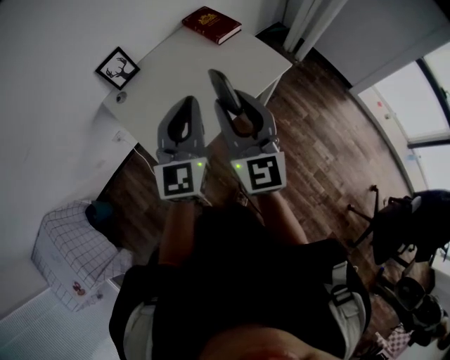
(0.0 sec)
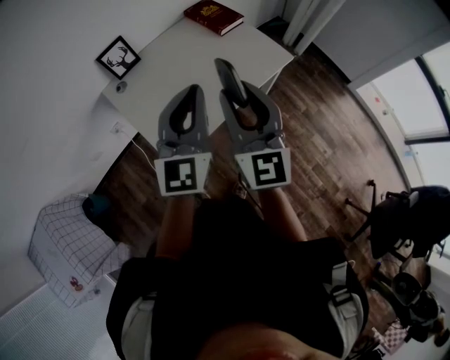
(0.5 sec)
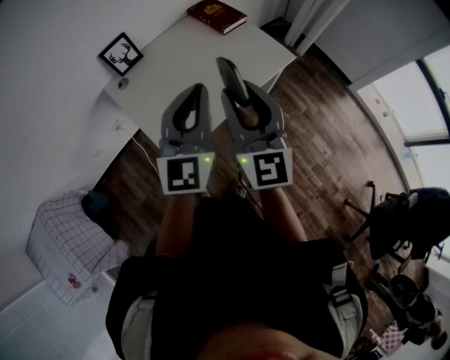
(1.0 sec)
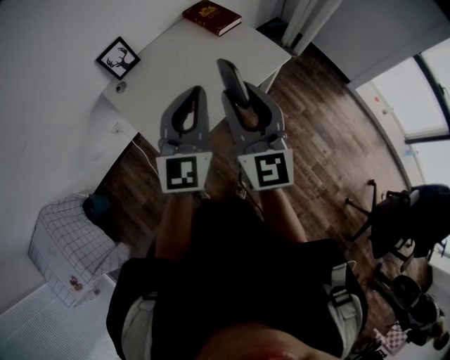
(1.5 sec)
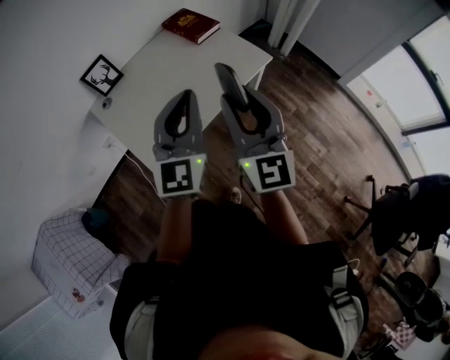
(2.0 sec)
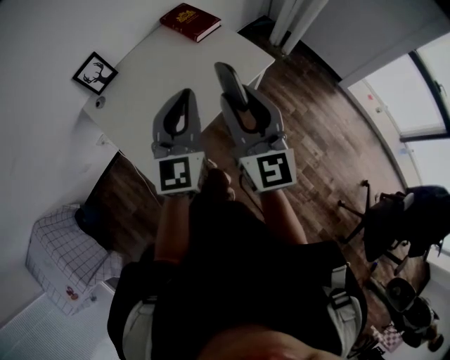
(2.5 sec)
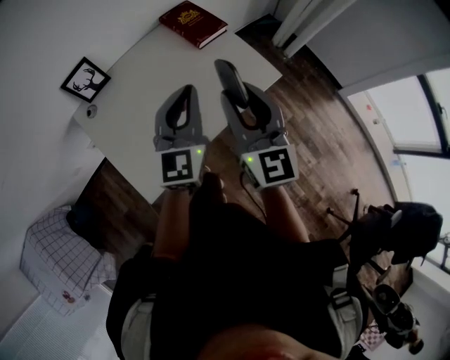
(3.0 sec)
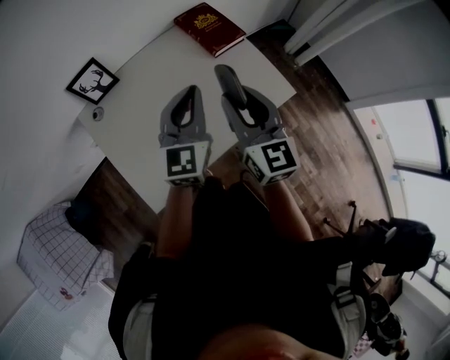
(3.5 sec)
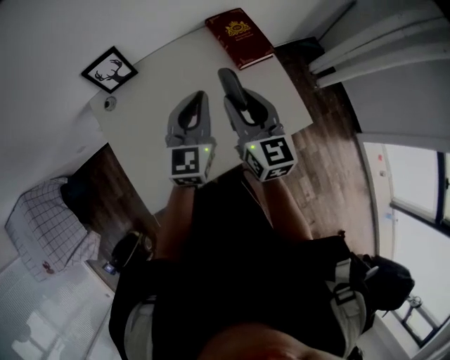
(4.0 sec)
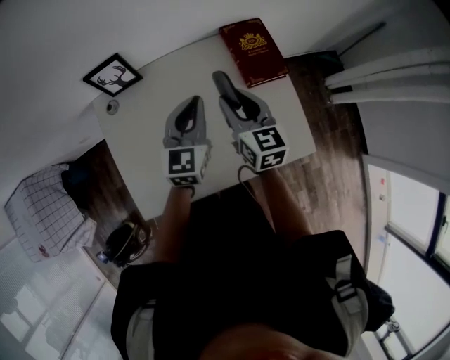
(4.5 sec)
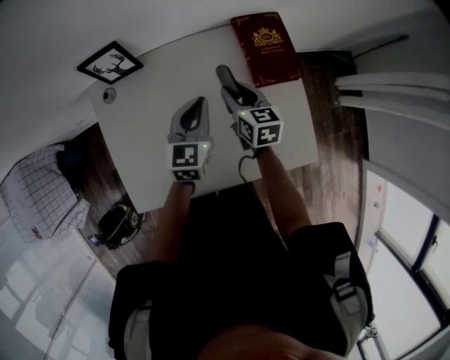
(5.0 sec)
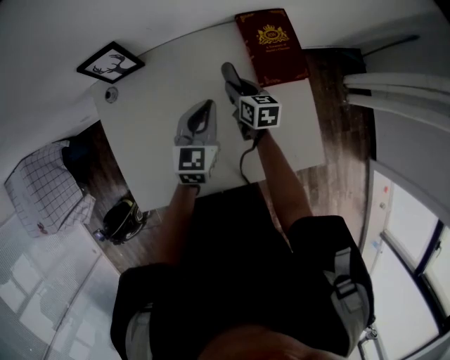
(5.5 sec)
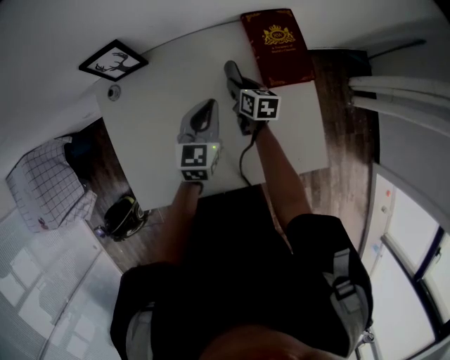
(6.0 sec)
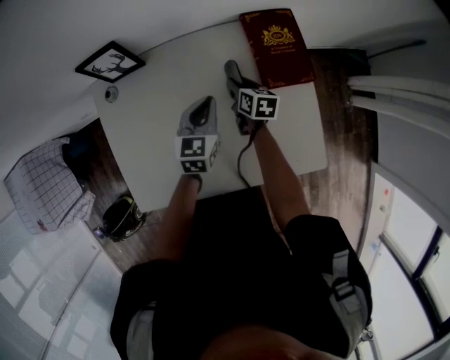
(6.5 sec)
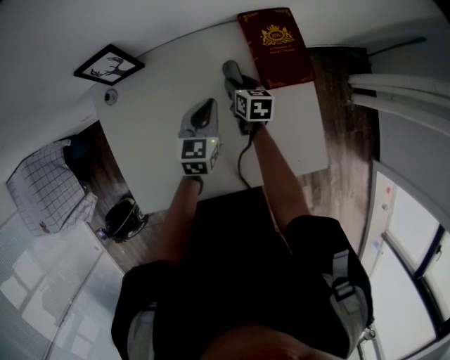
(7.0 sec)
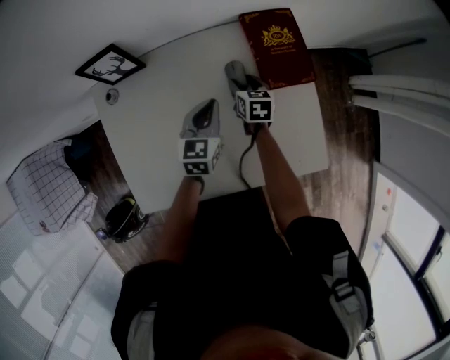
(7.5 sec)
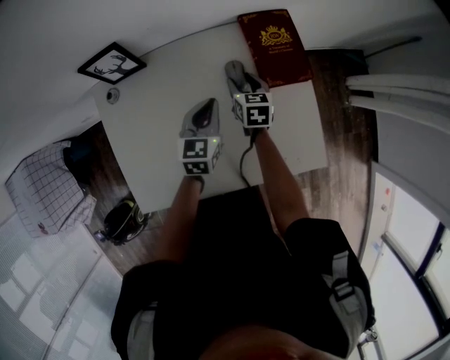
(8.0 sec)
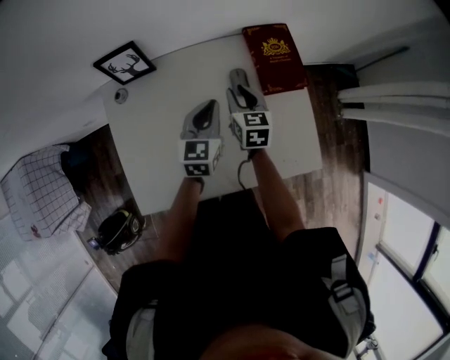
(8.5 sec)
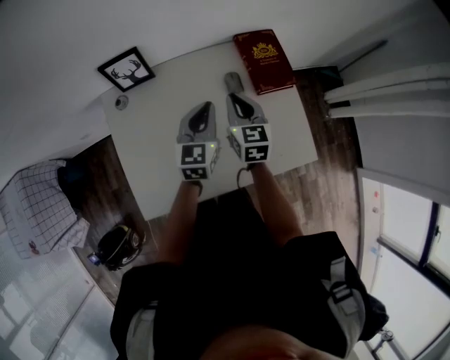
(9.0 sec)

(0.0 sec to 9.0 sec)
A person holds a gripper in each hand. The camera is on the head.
0.0 sec - 2.0 sec: Both grippers move to the right, some 5 cm.
2.0 sec - 4.5 sec: The pair of grippers is taken about 40 cm. The left gripper turns by some 30 degrees; the right gripper swivels approximately 50 degrees.
4.5 sec - 7.0 sec: The left gripper heads downward, covering approximately 15 cm. Meanwhile the right gripper moves downward and forward, approximately 25 cm, and swivels some 30 degrees.
7.0 sec - 9.0 sec: The right gripper goes roughly 25 cm upward and backward, swivels approximately 30 degrees, and closes up, while the left gripper moves upward, approximately 10 cm.

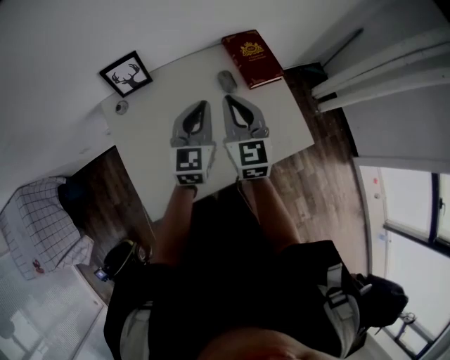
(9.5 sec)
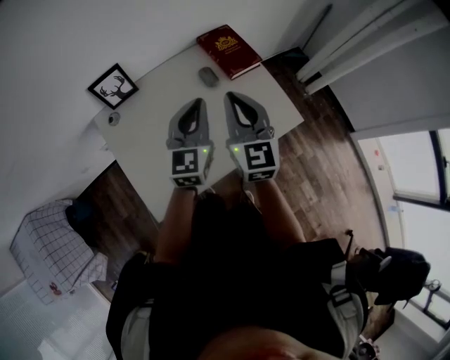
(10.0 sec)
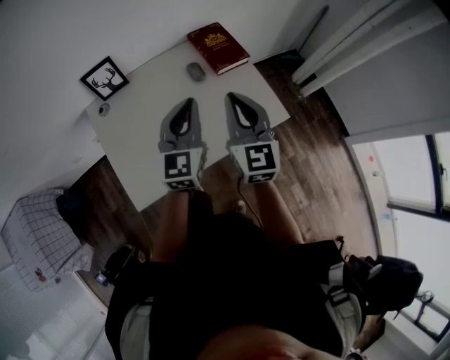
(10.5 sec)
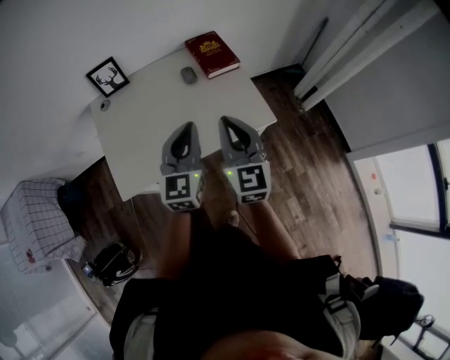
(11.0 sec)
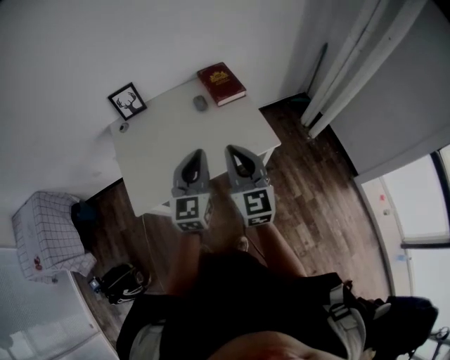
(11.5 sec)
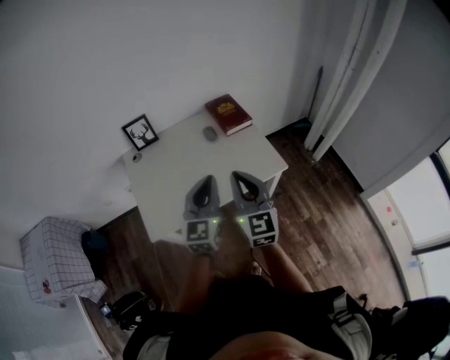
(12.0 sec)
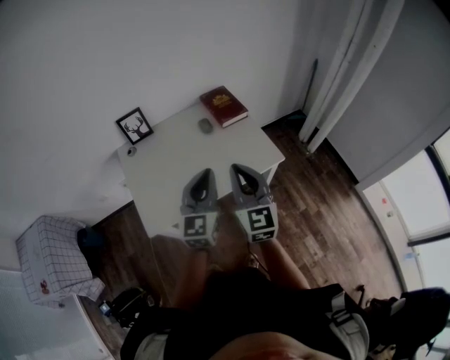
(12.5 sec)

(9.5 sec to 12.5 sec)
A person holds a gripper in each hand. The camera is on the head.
9.5 sec - 11.0 sec: Both grippers move backward and to the right, some 25 cm.
11.0 sec - 12.5 sec: Both grippers move backward, some 10 cm.

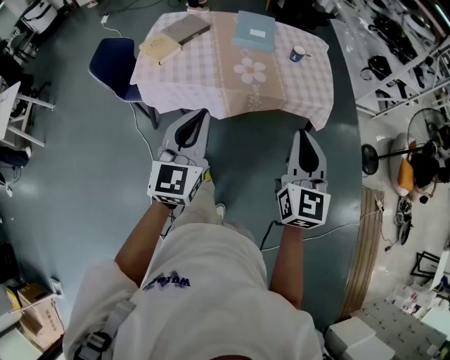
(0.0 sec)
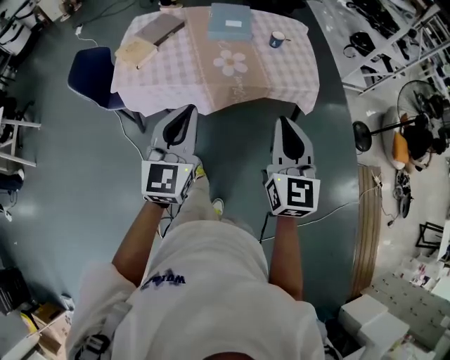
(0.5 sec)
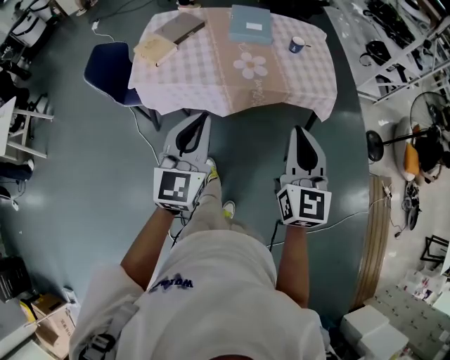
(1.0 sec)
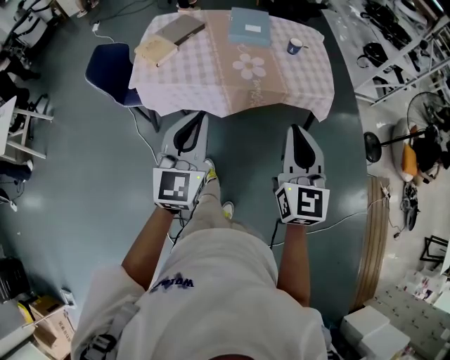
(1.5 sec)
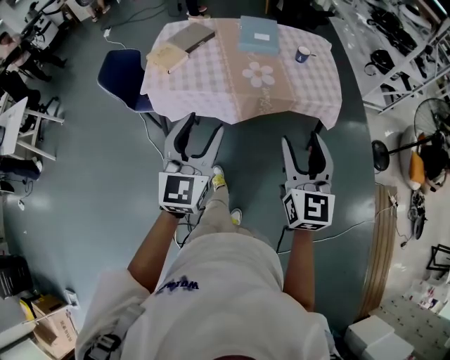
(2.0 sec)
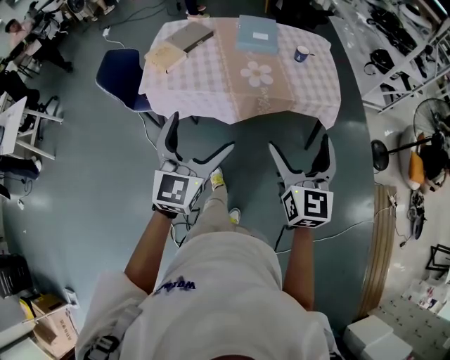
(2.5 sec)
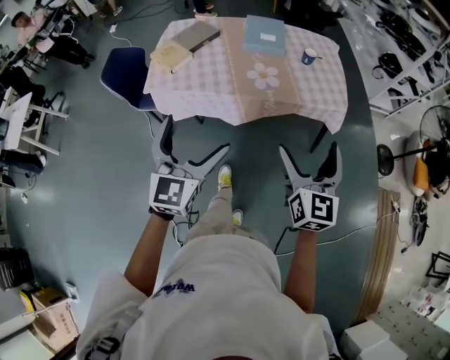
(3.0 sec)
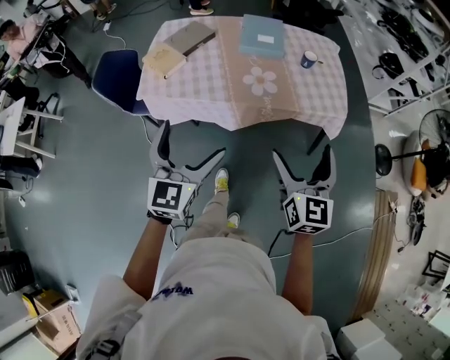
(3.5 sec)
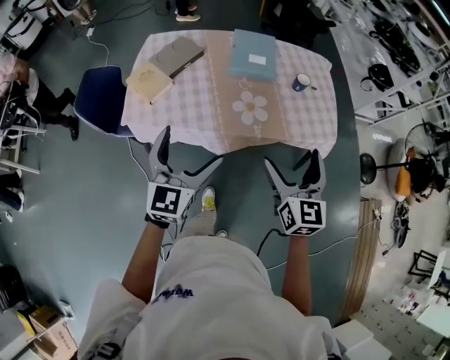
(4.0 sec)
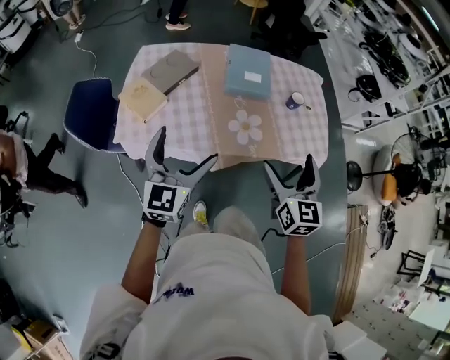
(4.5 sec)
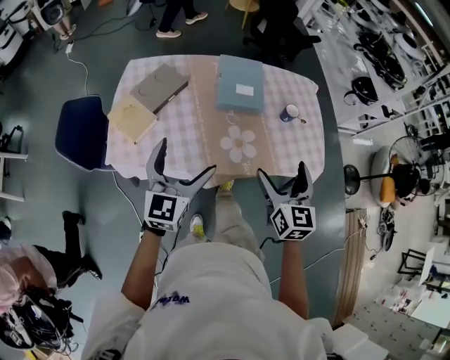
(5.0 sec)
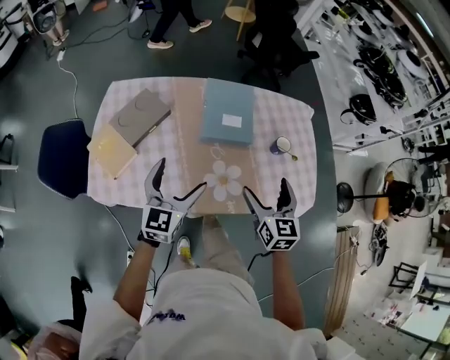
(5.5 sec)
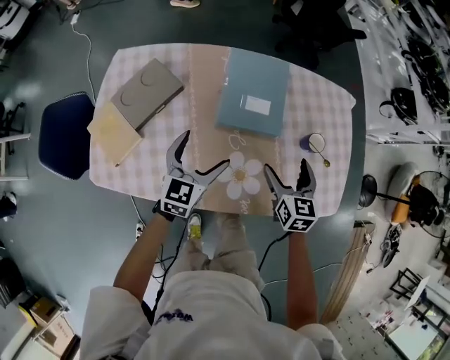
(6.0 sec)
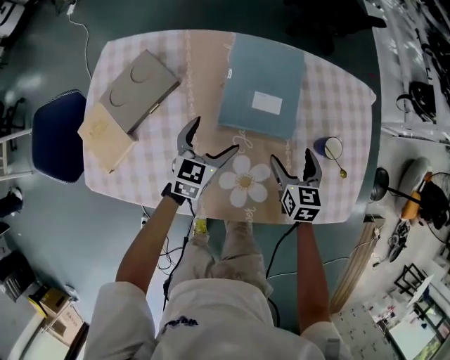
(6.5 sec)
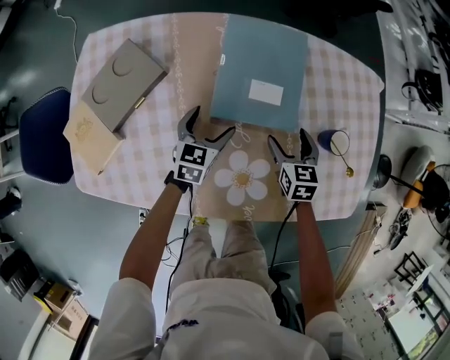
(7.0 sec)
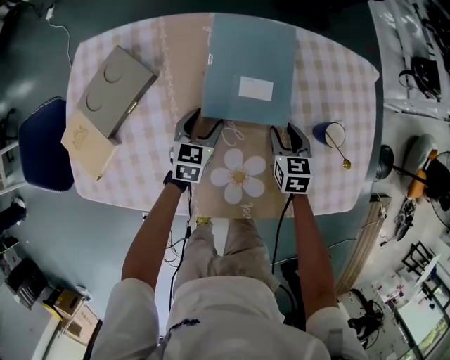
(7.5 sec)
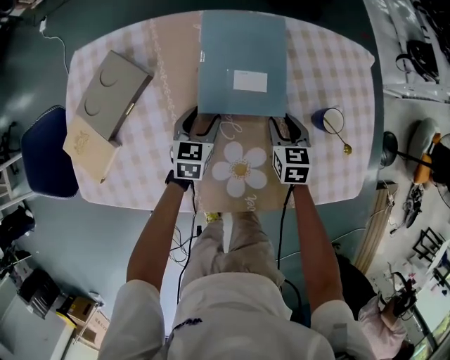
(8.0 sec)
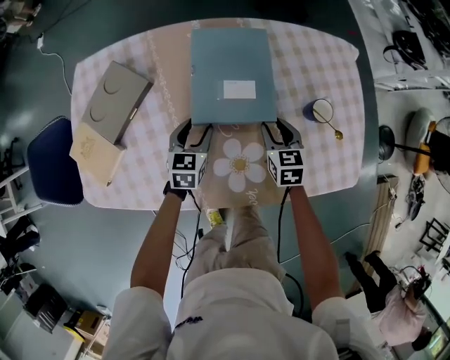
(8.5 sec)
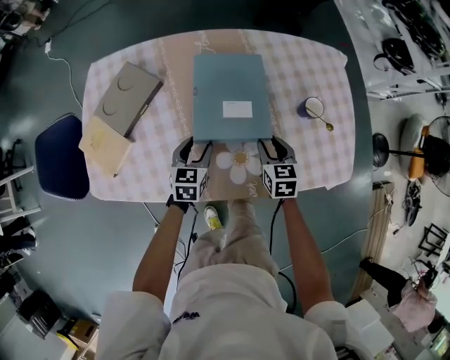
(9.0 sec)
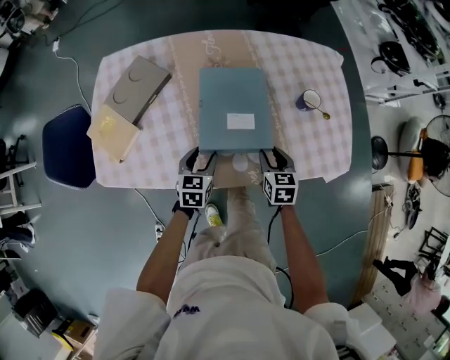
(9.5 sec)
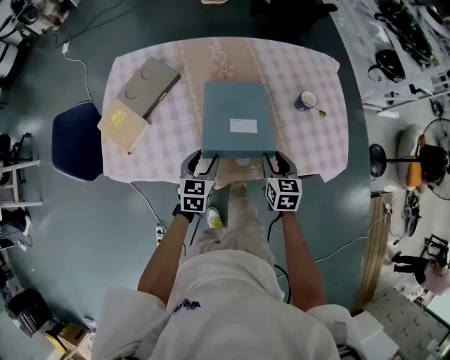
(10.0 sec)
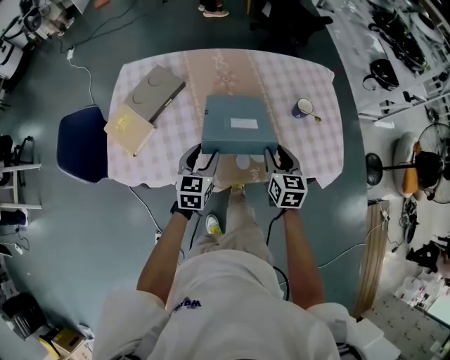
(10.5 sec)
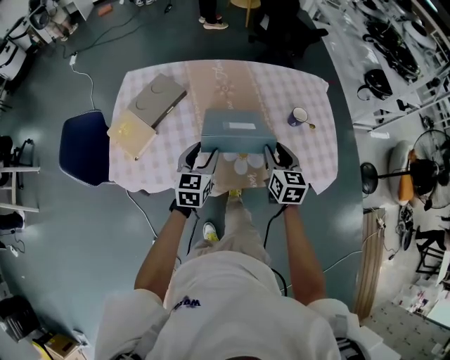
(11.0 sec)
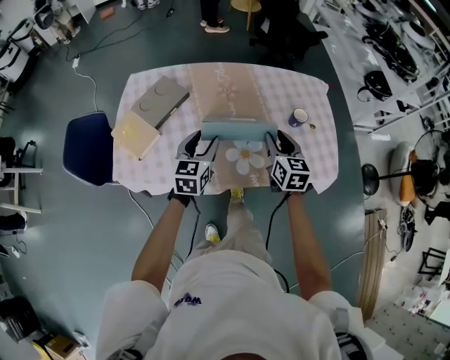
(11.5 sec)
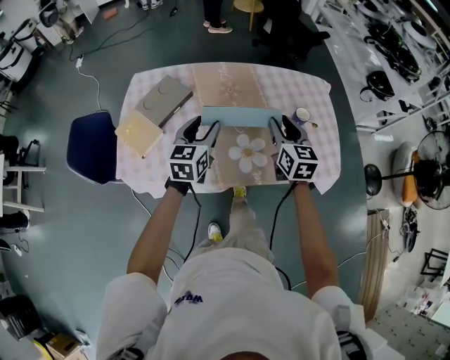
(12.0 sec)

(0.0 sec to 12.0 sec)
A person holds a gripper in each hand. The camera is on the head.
0.0 sec - 2.0 sec: The left gripper opens, while the right gripper opens its fingers.
2.0 sec - 4.0 sec: The two grippers go roughly 20 cm forward. The left gripper opens. Meanwhile the right gripper opens its fingers.
4.0 sec - 6.0 sec: The two grippers go some 40 cm forward and downward. The right gripper rotates roughly 20 degrees.
6.0 sec - 8.0 sec: The two grippers go some 20 cm downward and forward. The left gripper closes. The right gripper closes its fingers.
8.0 sec - 10.0 sec: The two grippers go some 25 cm backward and upward.
10.0 sec - 12.0 sec: Both grippers move upward, some 20 cm.

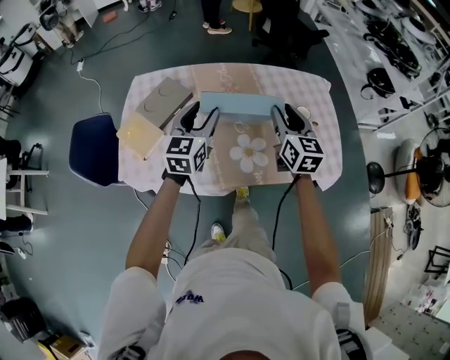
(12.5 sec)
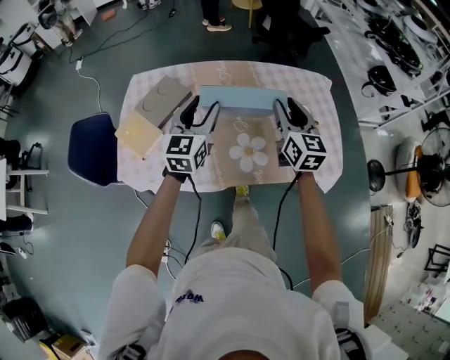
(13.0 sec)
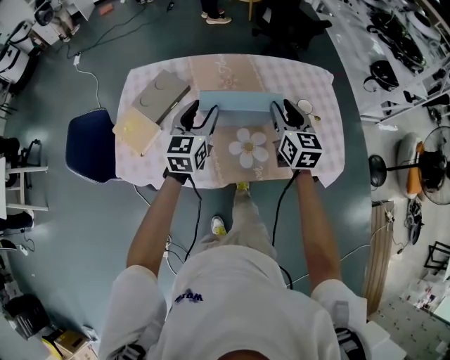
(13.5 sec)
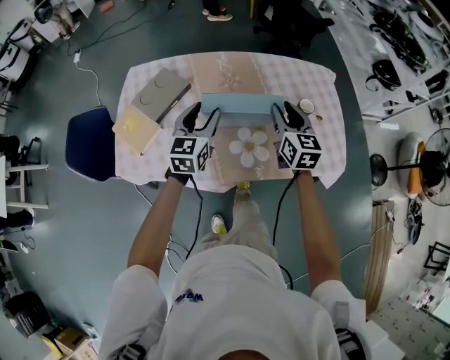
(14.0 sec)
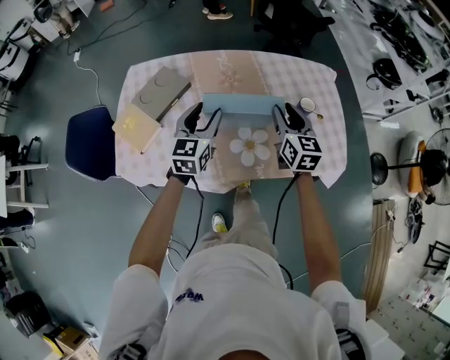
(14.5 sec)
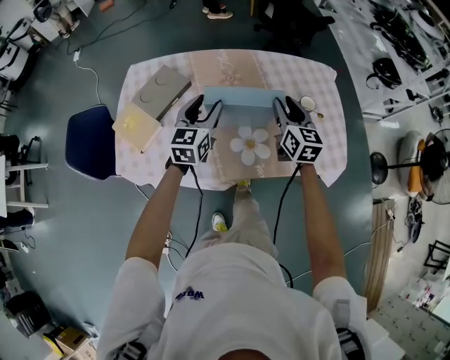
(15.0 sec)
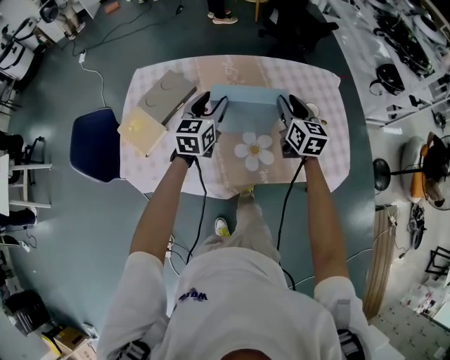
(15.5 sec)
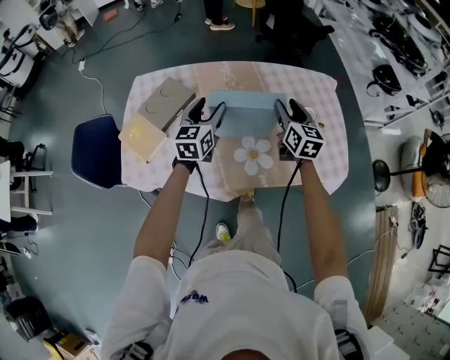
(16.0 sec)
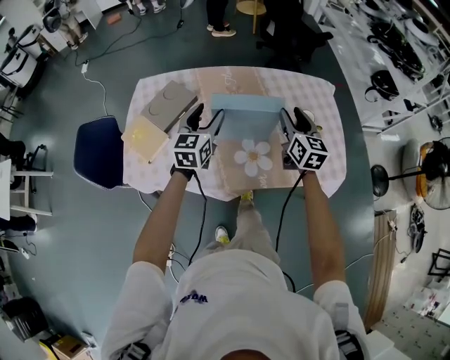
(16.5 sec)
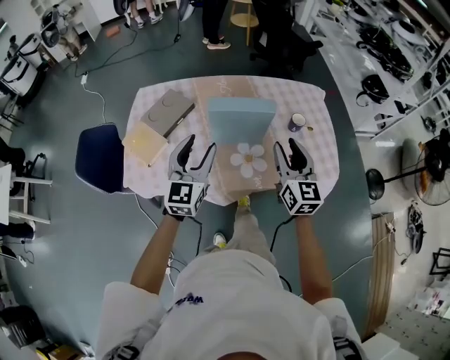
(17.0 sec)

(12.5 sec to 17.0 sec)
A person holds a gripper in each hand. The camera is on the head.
12.5 sec - 14.5 sec: The two grippers go roughly 5 cm downward.
14.5 sec - 17.0 sec: The grippers both shift backward and upward by some 15 cm.
